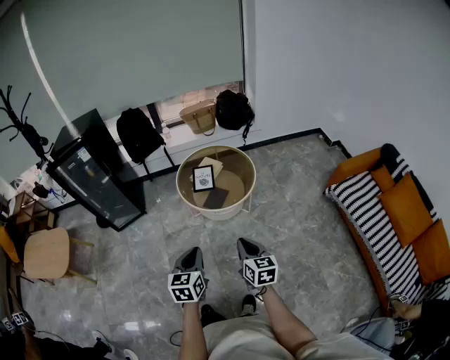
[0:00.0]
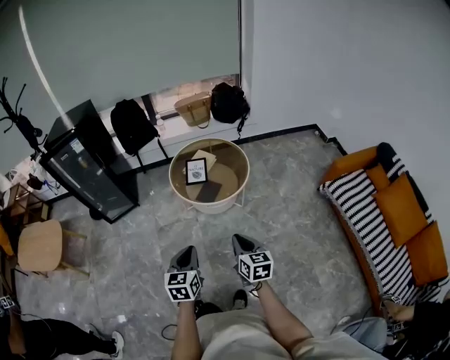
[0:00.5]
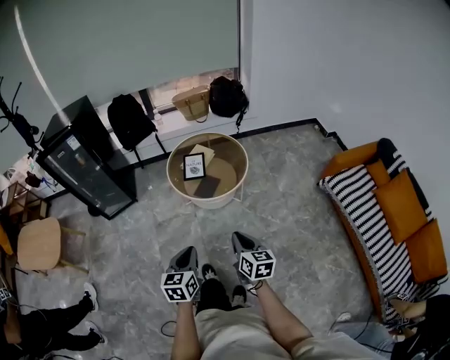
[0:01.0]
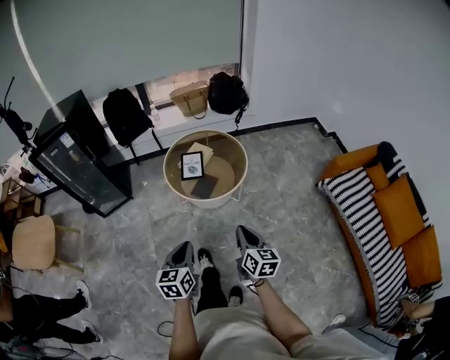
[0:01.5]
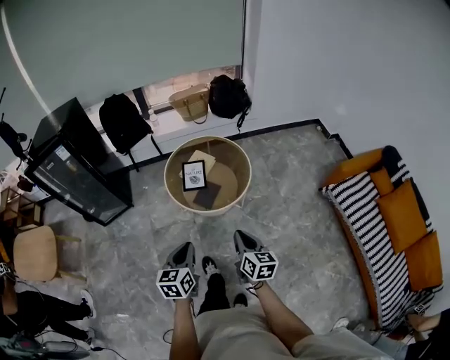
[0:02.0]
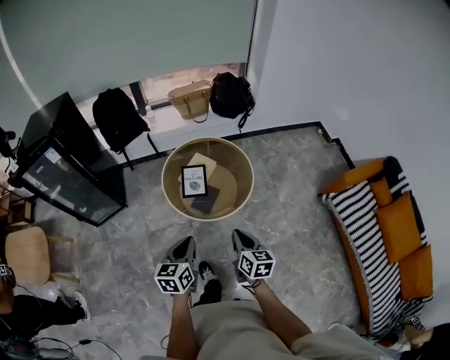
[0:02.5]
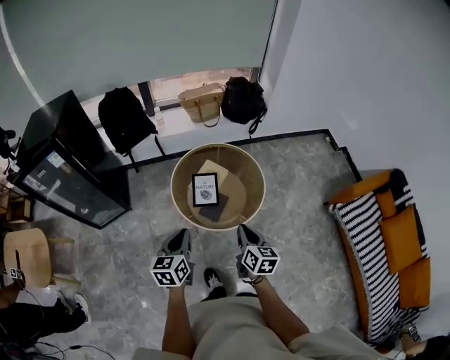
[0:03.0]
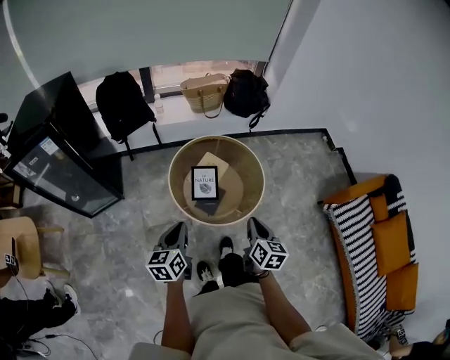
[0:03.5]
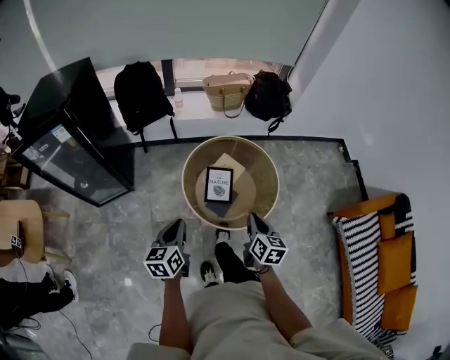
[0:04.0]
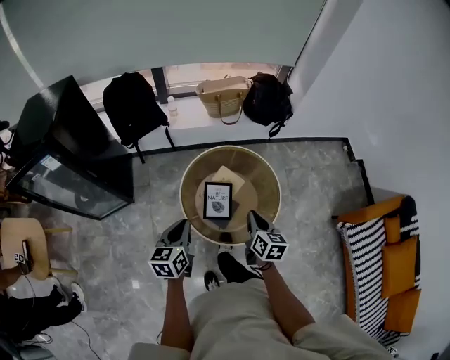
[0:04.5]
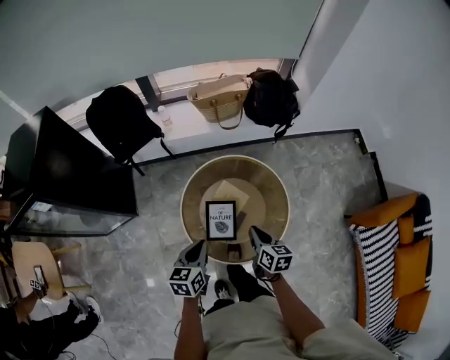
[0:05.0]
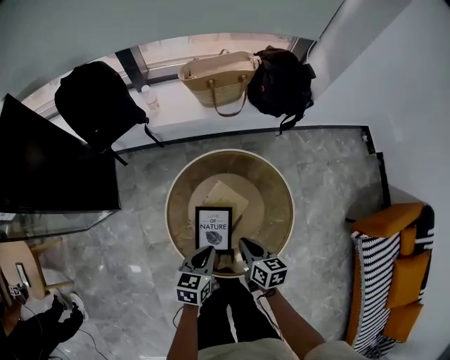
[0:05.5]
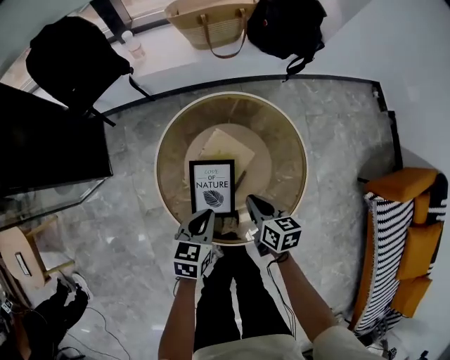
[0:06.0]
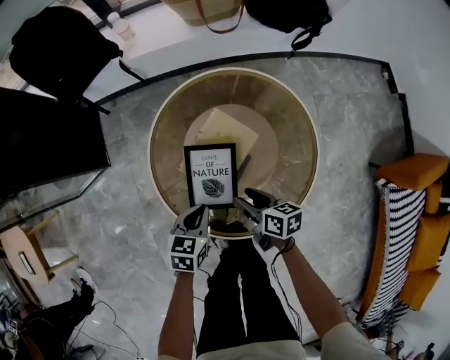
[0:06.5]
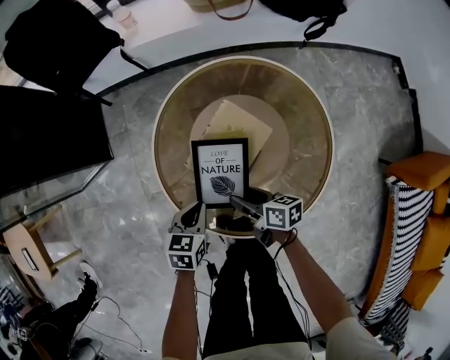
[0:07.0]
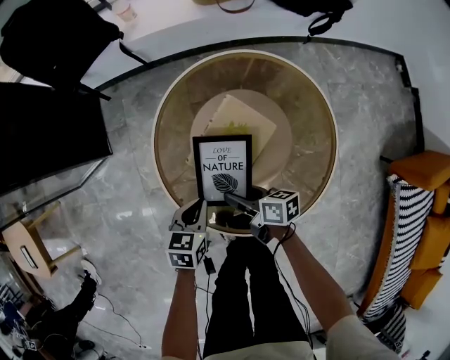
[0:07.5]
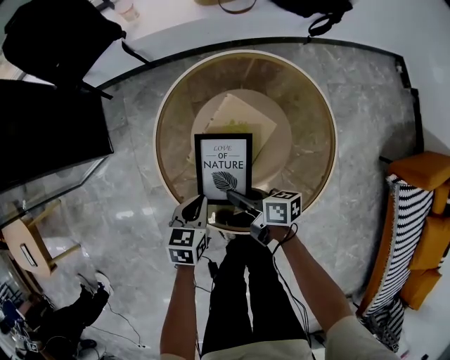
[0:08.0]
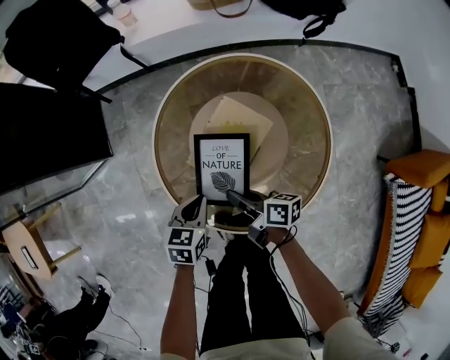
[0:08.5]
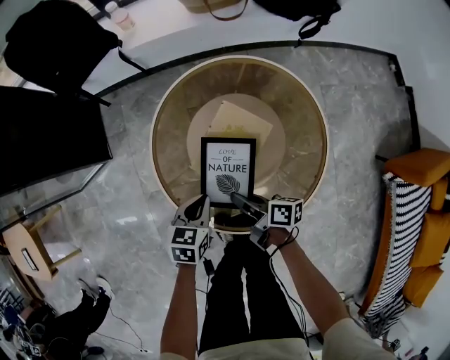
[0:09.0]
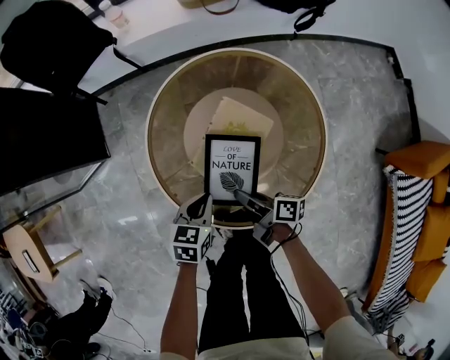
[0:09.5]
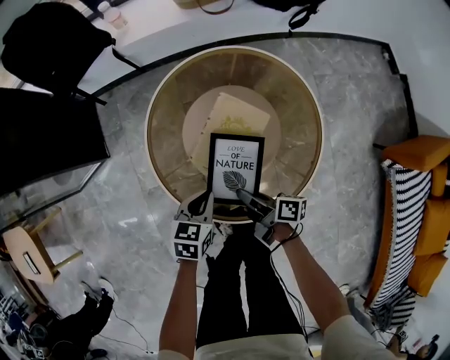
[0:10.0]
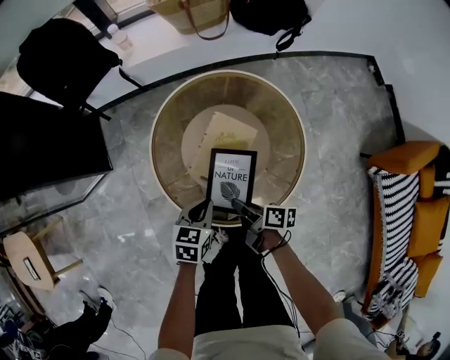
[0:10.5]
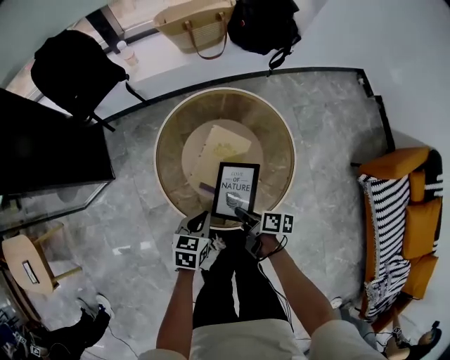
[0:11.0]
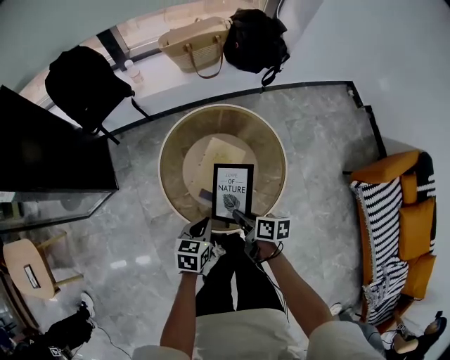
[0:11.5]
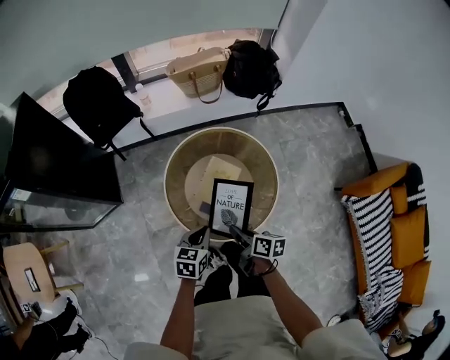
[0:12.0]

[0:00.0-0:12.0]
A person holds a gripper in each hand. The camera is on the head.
0:00.0 to 0:02.0: The grippers both shift forward by about 15 cm.
0:02.0 to 0:04.0: Both grippers travel together forward and to the left, about 30 cm.
0:04.0 to 0:06.0: The right gripper travels downward and forward by roughly 40 cm, and changes its angle by approximately 20 degrees; the left gripper shifts approximately 40 cm downward, forward and to the right, and rotates some 30 degrees.
0:06.0 to 0:08.0: Both grippers travel together downward and to the left, approximately 15 cm. The right gripper turns by roughly 40 degrees, and opens and closes again.
0:08.0 to 0:10.0: The right gripper goes about 5 cm backward. The left gripper moves about 5 cm.
0:10.0 to 0:12.0: The grippers both shift upward by about 25 cm. The right gripper turns by about 20 degrees.

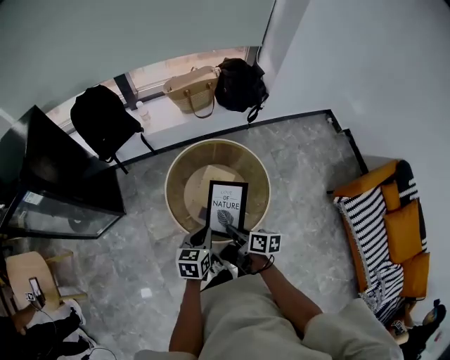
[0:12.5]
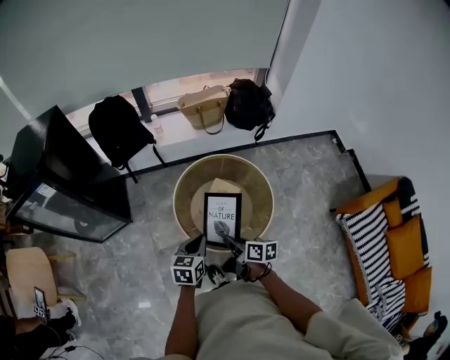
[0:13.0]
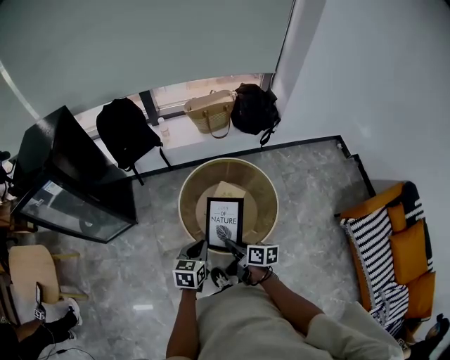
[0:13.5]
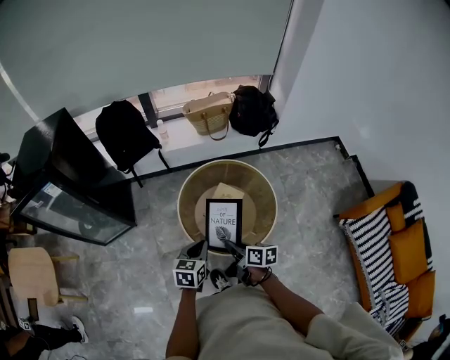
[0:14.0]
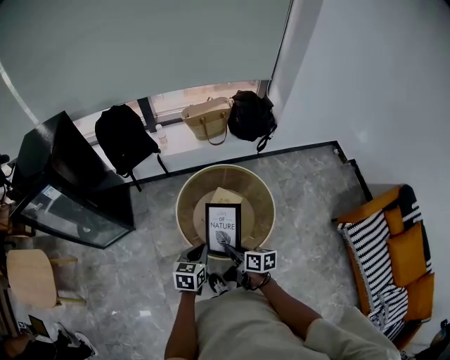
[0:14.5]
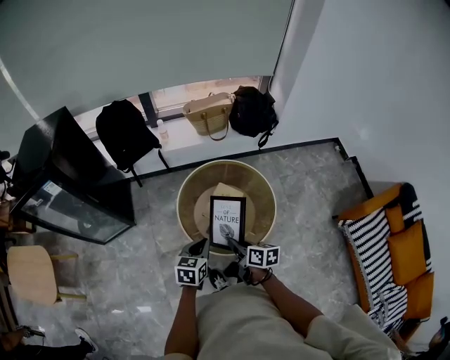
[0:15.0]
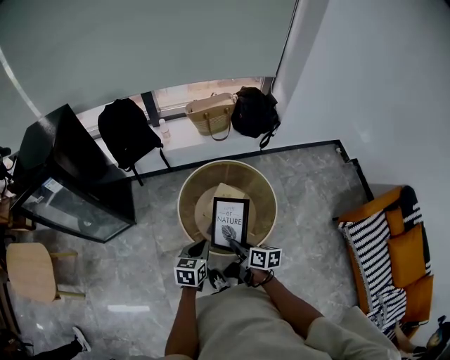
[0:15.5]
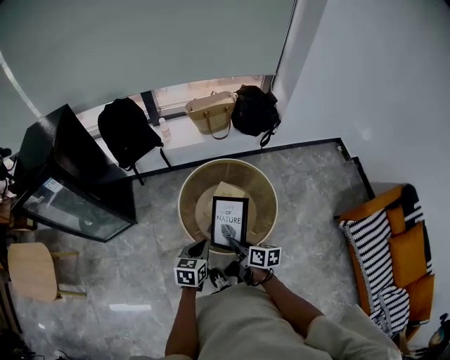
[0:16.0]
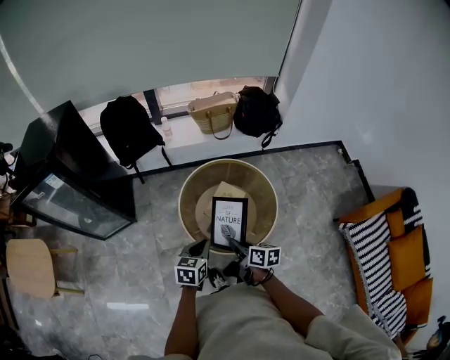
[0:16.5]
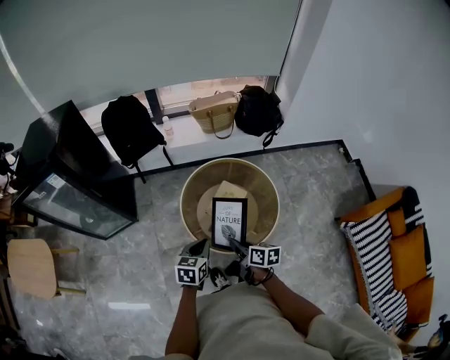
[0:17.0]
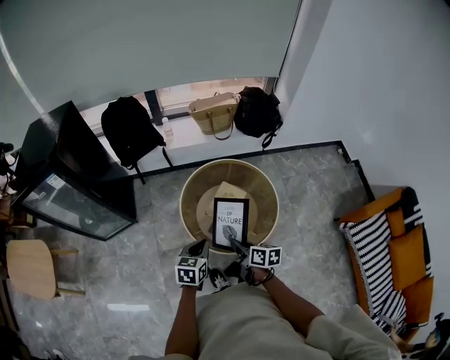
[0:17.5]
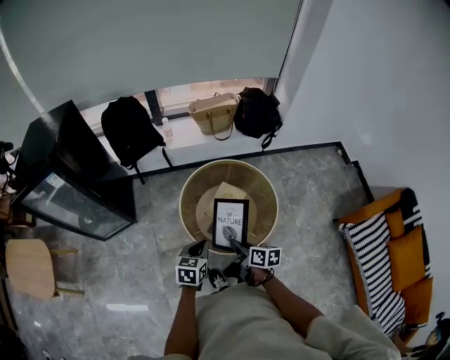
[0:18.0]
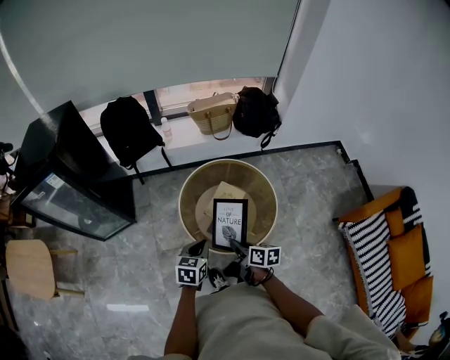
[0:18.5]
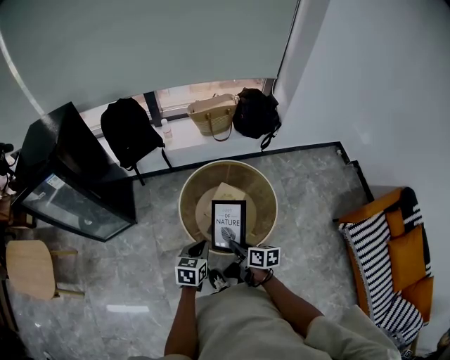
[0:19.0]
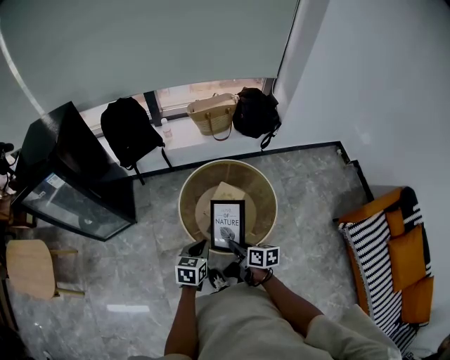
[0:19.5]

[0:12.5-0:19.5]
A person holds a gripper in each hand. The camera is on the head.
0:12.5 to 0:14.5: The left gripper changes place by approximately 5 cm, while the right gripper moves about 5 cm.
0:14.5 to 0:16.0: The grippers make only small movements.
0:16.0 to 0:17.5: Both grippers stay about where they are.
0:17.5 to 0:19.5: Neither gripper changes place.

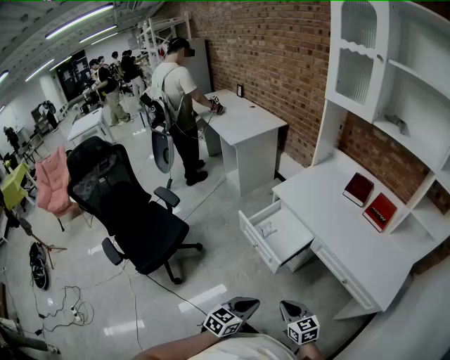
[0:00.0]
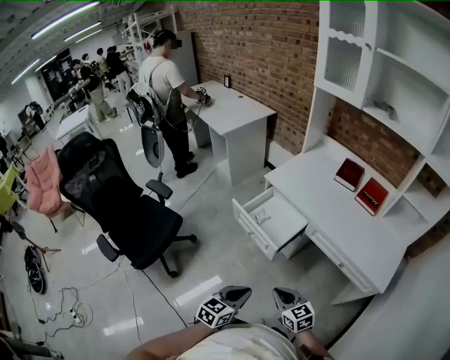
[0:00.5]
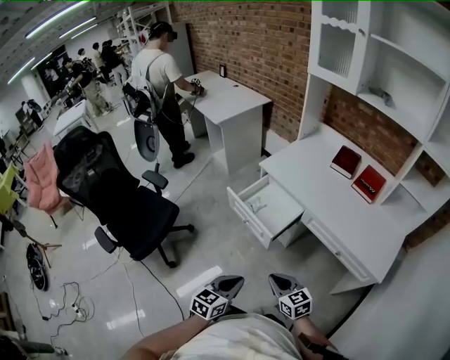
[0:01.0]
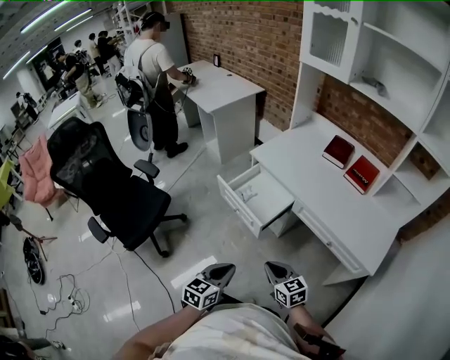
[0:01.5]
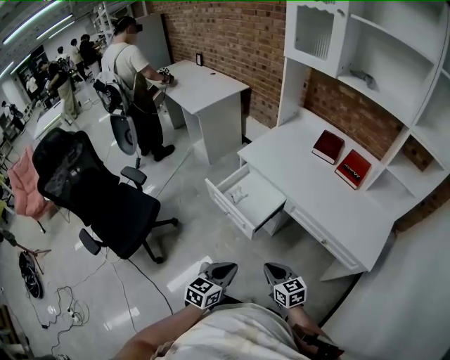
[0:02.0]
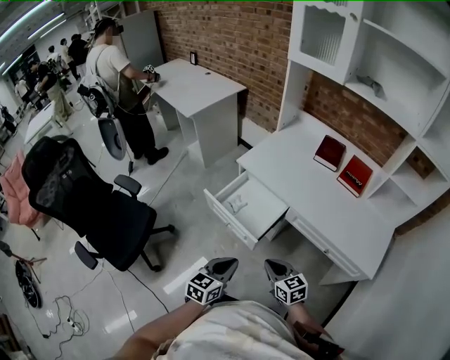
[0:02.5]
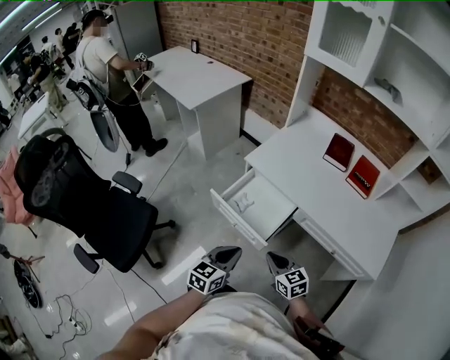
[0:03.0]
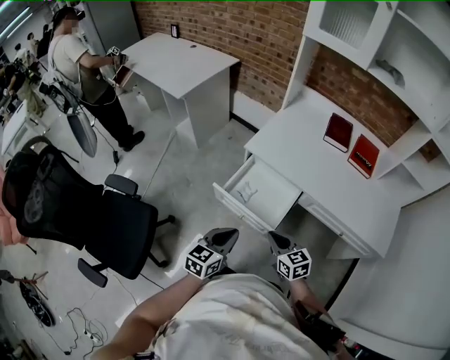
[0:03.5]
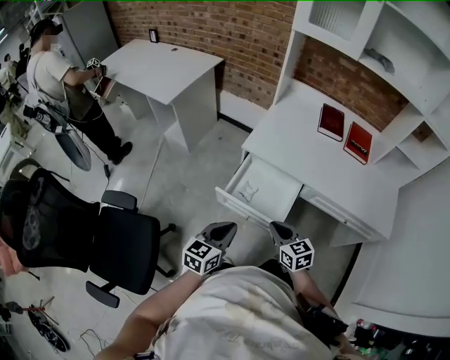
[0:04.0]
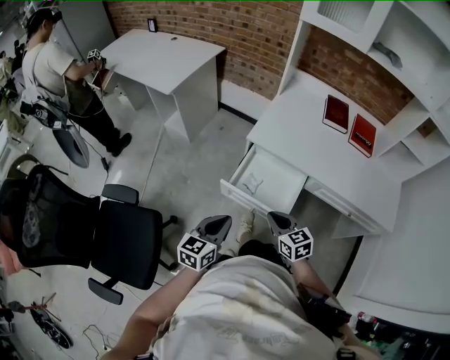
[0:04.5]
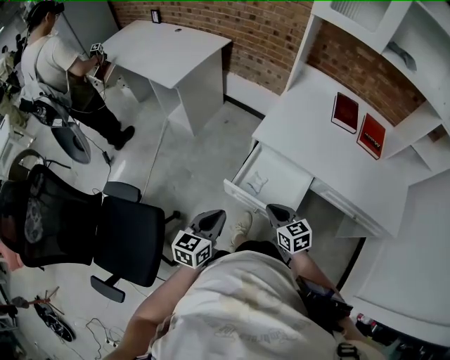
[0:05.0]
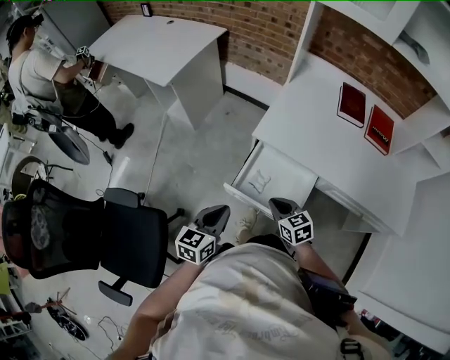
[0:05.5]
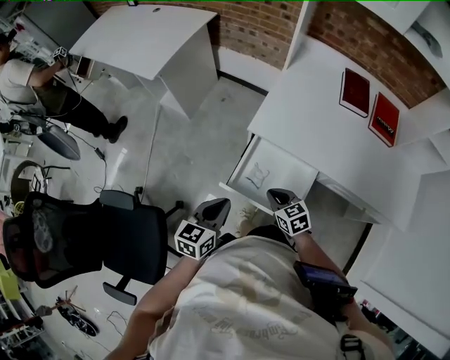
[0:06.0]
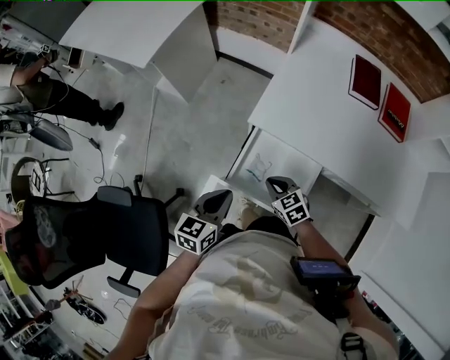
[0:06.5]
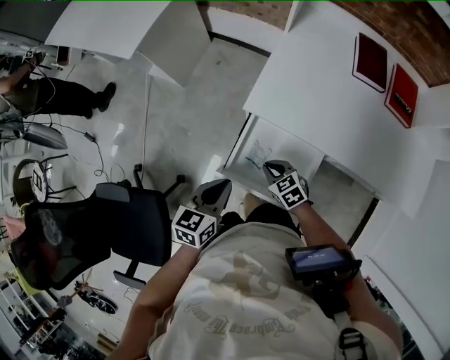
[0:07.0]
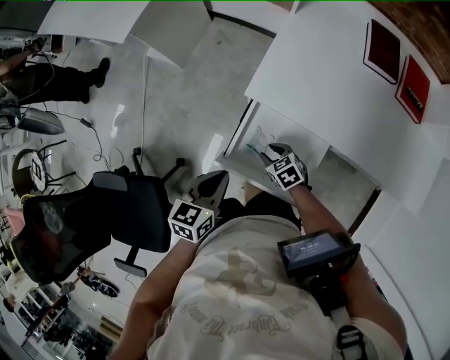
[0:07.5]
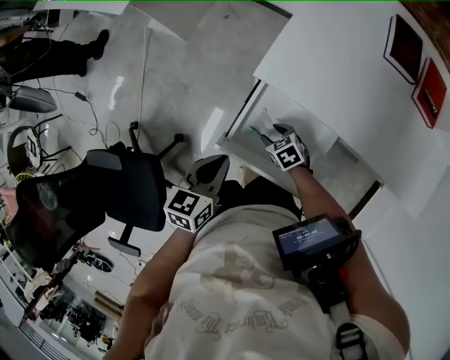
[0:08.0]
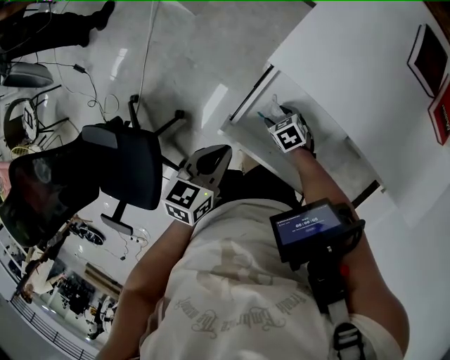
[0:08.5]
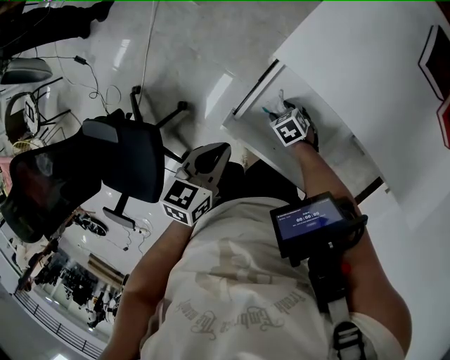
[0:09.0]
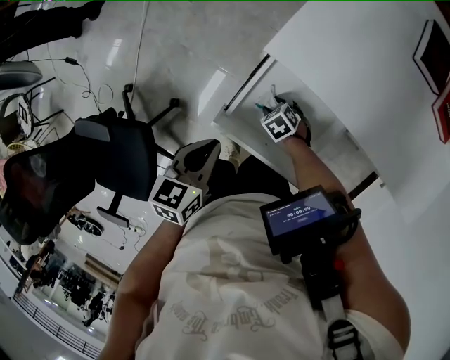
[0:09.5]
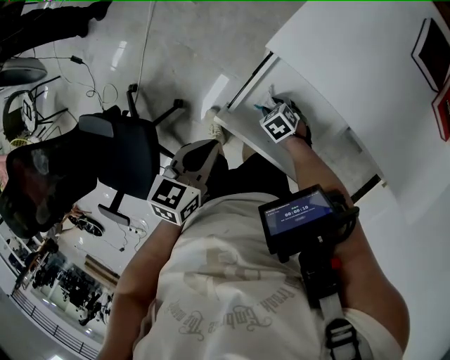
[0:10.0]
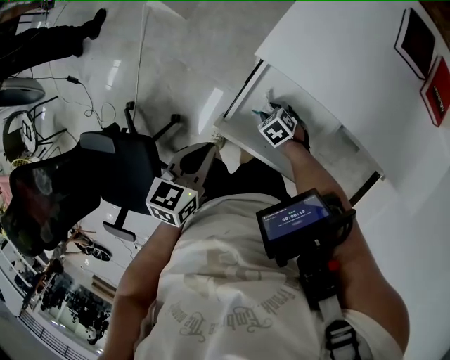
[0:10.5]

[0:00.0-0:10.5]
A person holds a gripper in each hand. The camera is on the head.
0:00.0 to 0:02.0: The grippers stay close to where they were, moving slightly.
0:02.0 to 0:04.0: Both grippers travel together forward and to the left, about 30 cm.
0:04.0 to 0:06.5: The left gripper shifts about 20 cm forward, while the right gripper travels forward and downward by about 25 cm, and swivels roughly 20 degrees.
0:06.5 to 0:08.5: The left gripper moves downward, roughly 5 cm, while the right gripper goes some 20 cm downward, rotates roughly 20 degrees, and opens up.
0:08.5 to 0:10.5: There are only small adjustments of the grippers.
